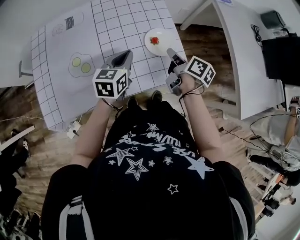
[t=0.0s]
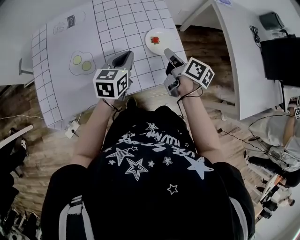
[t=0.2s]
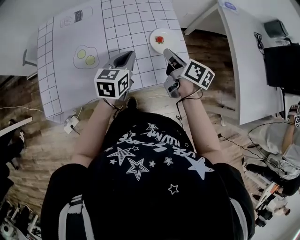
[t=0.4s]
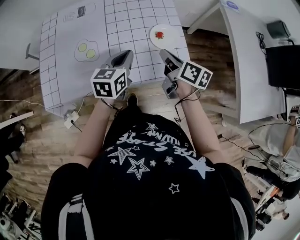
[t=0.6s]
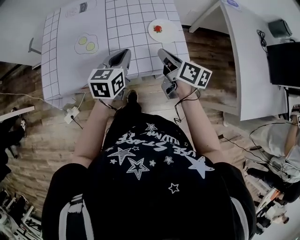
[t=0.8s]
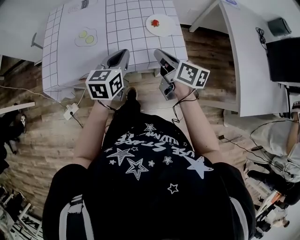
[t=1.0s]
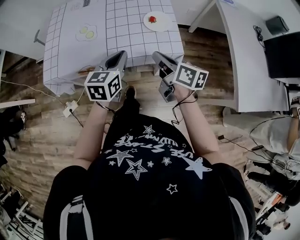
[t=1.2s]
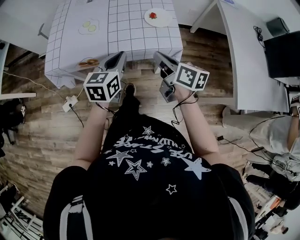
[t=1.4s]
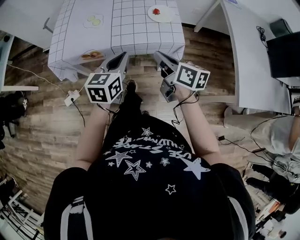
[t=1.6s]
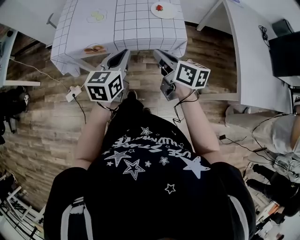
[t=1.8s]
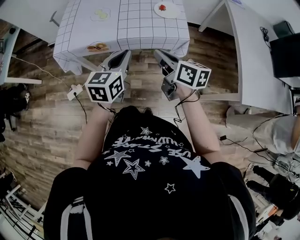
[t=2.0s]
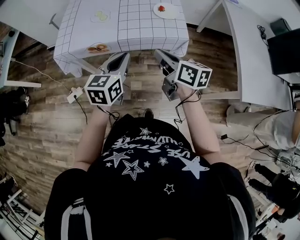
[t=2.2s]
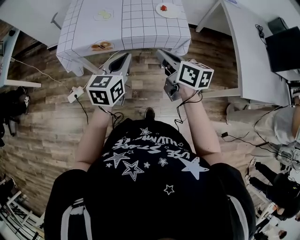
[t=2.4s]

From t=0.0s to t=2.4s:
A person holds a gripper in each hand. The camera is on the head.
From t=0.0s to t=1.2s: The left gripper changes place by roughly 20 cm.
From t=1.2s to t=2.4s: The left gripper shifts by about 15 cm.

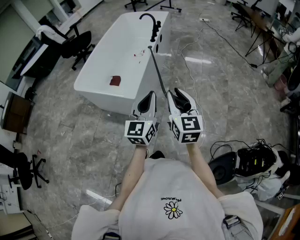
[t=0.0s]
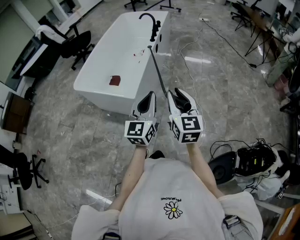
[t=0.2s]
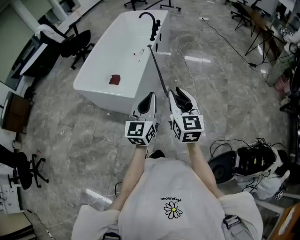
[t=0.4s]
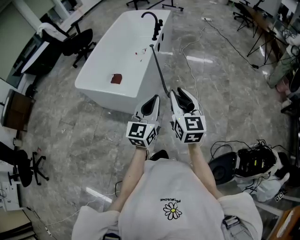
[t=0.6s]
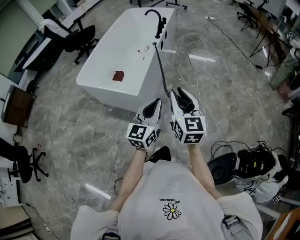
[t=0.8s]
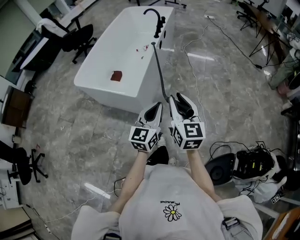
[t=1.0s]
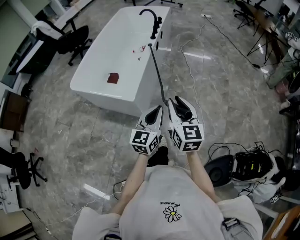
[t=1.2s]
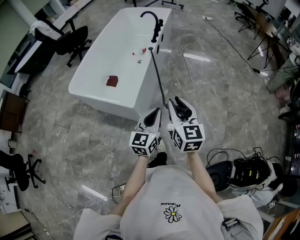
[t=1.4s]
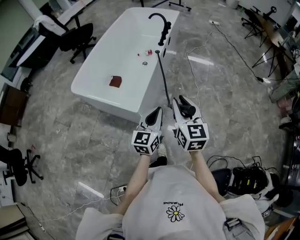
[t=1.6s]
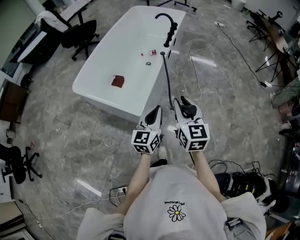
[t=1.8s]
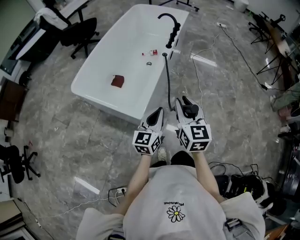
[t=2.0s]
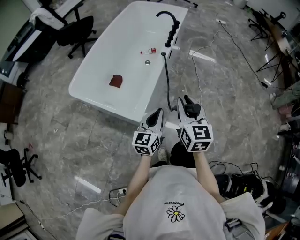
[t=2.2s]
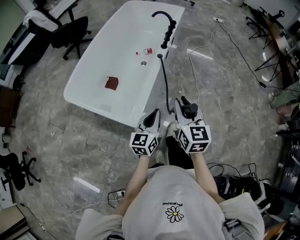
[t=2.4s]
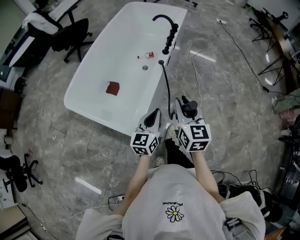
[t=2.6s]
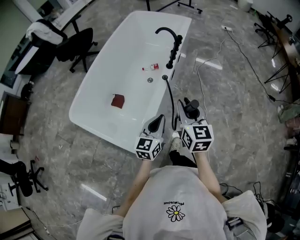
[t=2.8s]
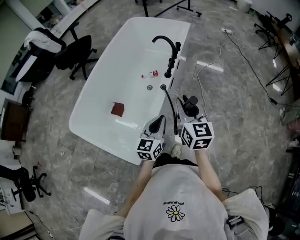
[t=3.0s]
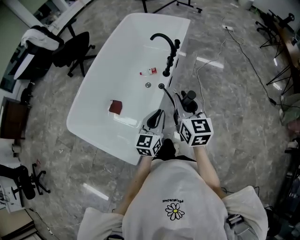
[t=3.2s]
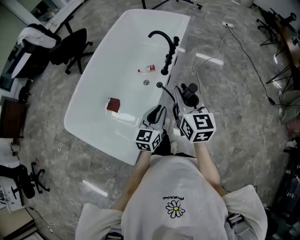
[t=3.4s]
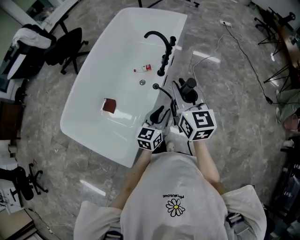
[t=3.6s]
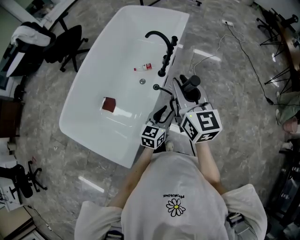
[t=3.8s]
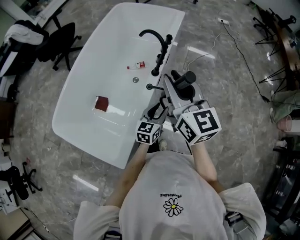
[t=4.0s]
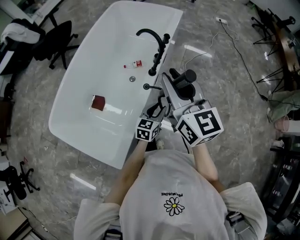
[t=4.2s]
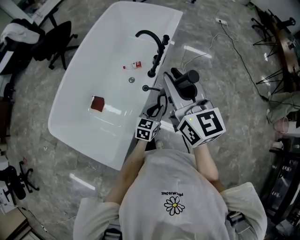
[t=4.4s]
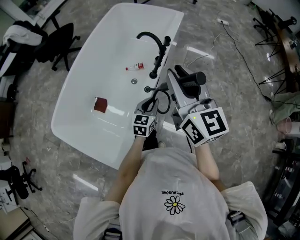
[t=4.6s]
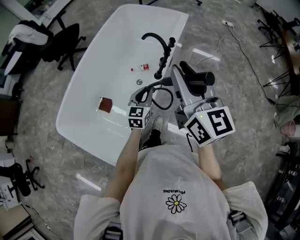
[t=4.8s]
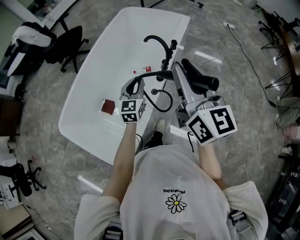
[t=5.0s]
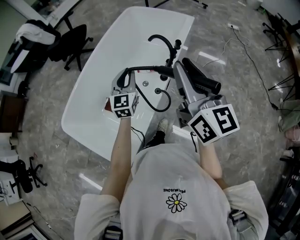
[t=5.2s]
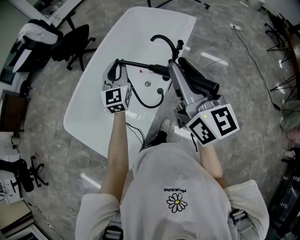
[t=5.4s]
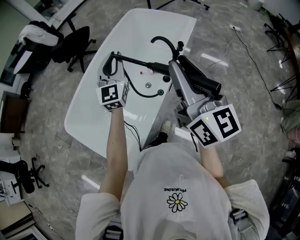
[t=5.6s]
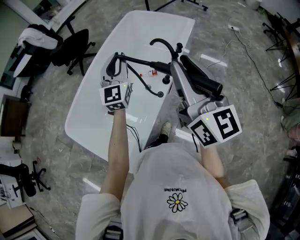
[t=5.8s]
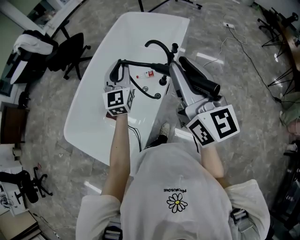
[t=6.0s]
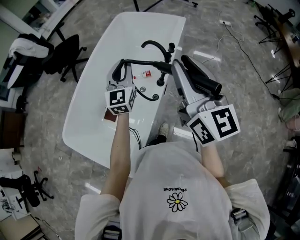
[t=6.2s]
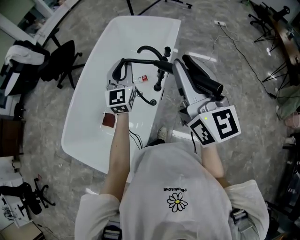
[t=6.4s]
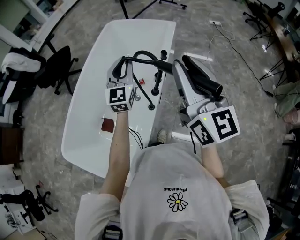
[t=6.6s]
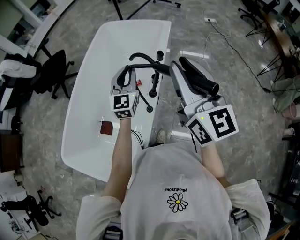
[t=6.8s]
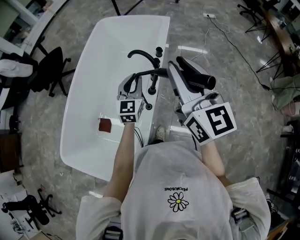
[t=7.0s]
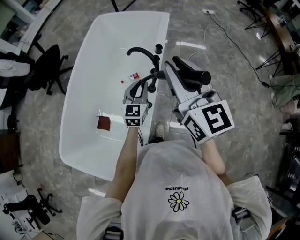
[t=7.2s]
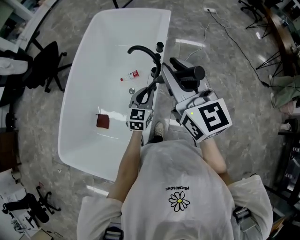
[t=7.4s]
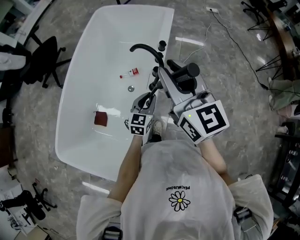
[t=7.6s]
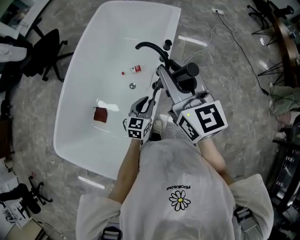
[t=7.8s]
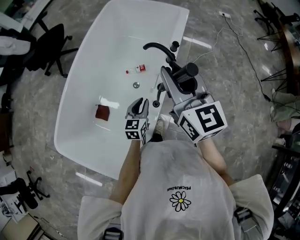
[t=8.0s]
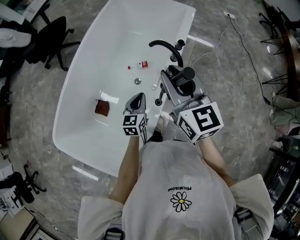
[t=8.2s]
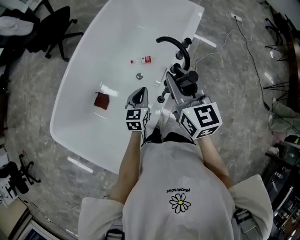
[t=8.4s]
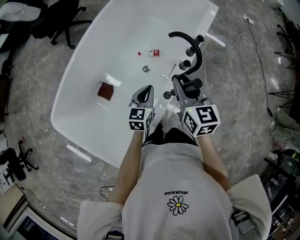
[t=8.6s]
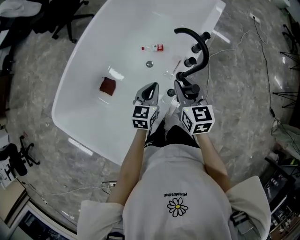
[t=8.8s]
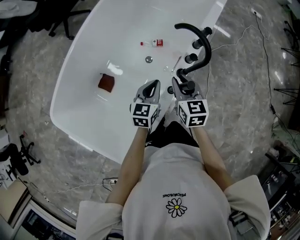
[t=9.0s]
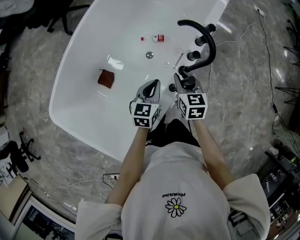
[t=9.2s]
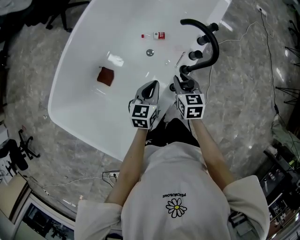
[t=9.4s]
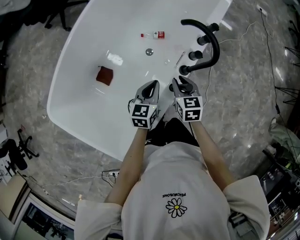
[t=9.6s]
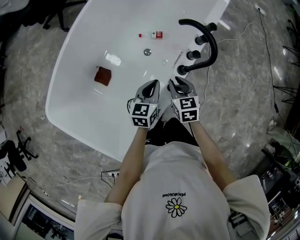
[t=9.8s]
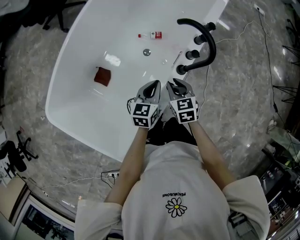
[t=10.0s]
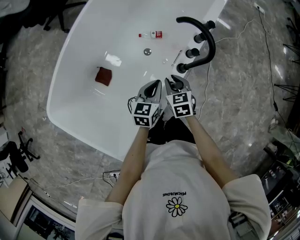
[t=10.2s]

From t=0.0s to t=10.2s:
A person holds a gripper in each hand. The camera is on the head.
From t=0.0s to t=1.4s: The right gripper travels forward by some 10 cm. Meanwhile the left gripper is displaced downward and forward by some 10 cm.
From t=1.4s to t=3.0s: Both grippers are carried forward, roughly 40 cm.
From t=3.0s to t=4.4s: The right gripper is displaced forward and upward by roughly 20 cm, while the left gripper goes approximately 20 cm forward, downward and to the right, and opens, then closes once more.
From t=4.4s to t=5.8s: The right gripper is displaced upward by about 10 cm, while the left gripper heads upward, to the left and forward, covering about 40 cm, and tilts its fingers roughly 30 degrees upward.
From t=5.8s to t=7.2s: The right gripper travels forward and downward by approximately 15 cm. Meanwhile the left gripper travels downward and to the right by roughly 25 cm, and changes its angle by roughly 30 degrees.
From t=7.2s to t=8.8s: The left gripper moves to the left and downward, about 15 cm, and turns by roughly 30 degrees; the right gripper travels downward and to the left by roughly 30 cm, and angles its fingers downward, by approximately 30 degrees.
From t=8.8s to t=10.2s: The right gripper travels downward by approximately 15 cm, and rotates approximately 20 degrees, while the left gripper shifts about 5 cm downward.

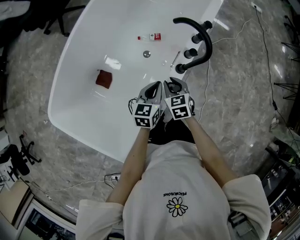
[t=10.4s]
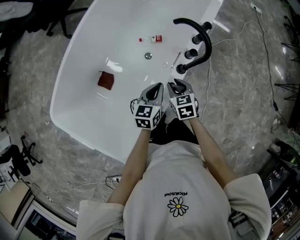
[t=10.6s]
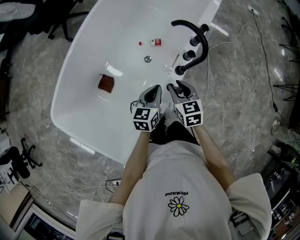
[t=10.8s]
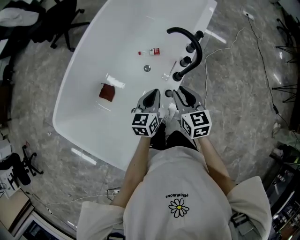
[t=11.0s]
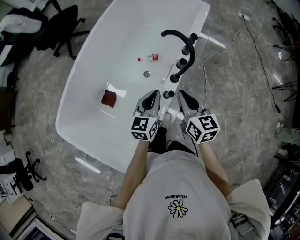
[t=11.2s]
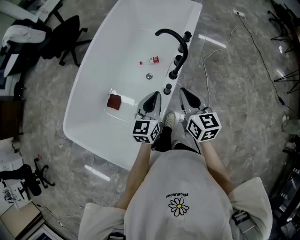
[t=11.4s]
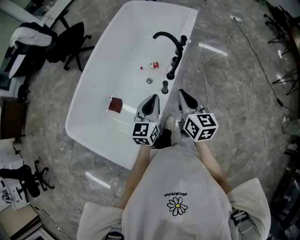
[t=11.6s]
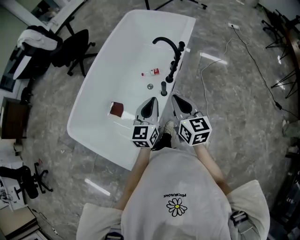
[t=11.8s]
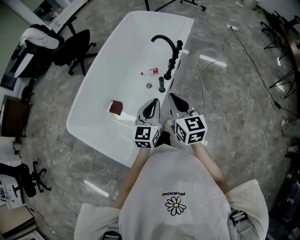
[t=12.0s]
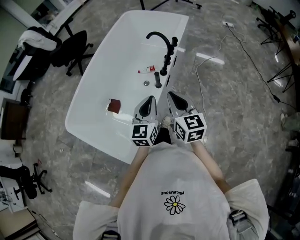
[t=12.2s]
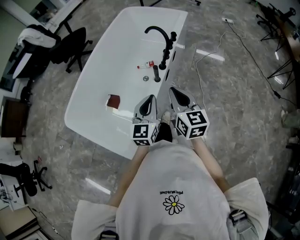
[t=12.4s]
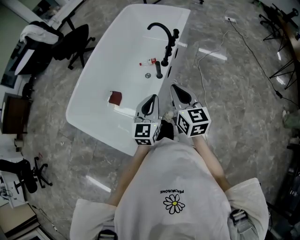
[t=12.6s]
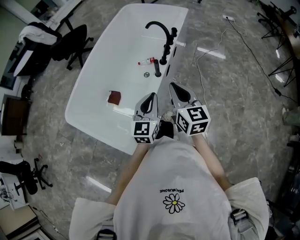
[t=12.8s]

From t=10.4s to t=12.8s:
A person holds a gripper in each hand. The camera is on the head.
From t=10.4s to t=11.6s: The grippers both shift upward and backward by roughly 25 cm. The right gripper angles its fingers upward, by roughly 30 degrees, and closes its fingers; the left gripper changes its angle by approximately 20 degrees.
From t=11.6s to t=12.8s: Both grippers move backward, roughly 15 cm.

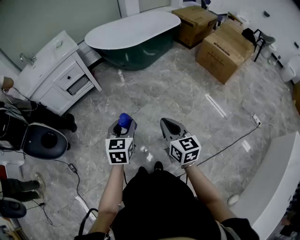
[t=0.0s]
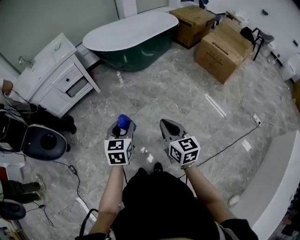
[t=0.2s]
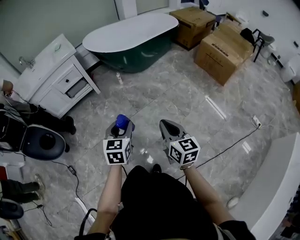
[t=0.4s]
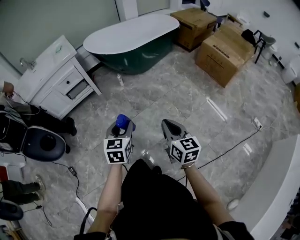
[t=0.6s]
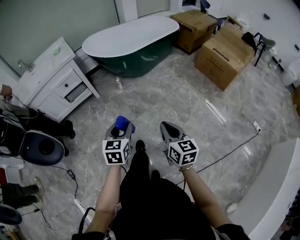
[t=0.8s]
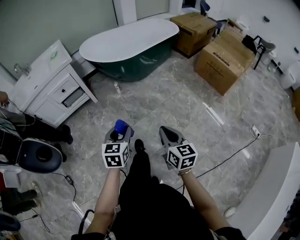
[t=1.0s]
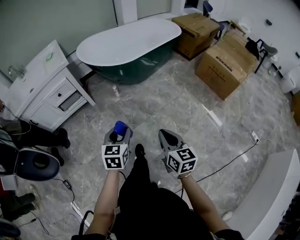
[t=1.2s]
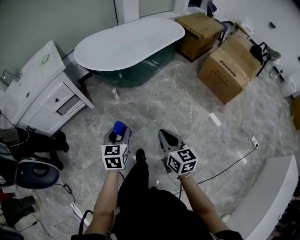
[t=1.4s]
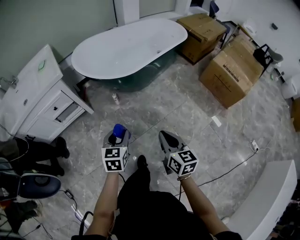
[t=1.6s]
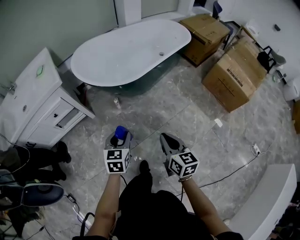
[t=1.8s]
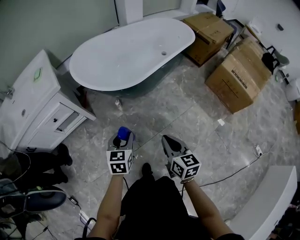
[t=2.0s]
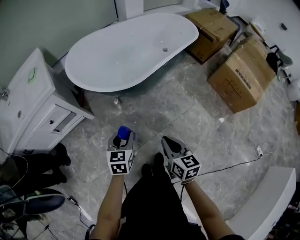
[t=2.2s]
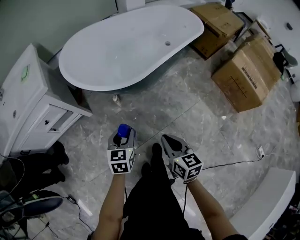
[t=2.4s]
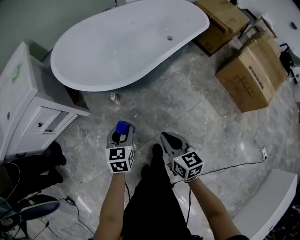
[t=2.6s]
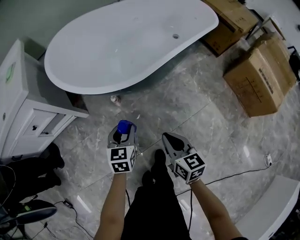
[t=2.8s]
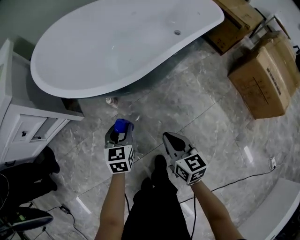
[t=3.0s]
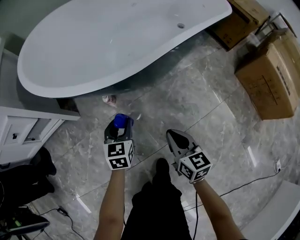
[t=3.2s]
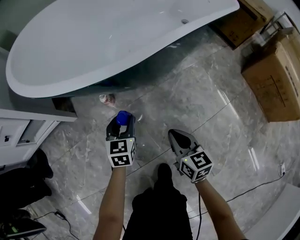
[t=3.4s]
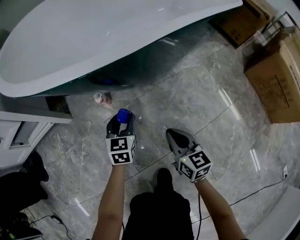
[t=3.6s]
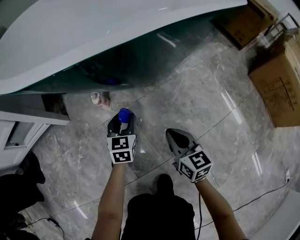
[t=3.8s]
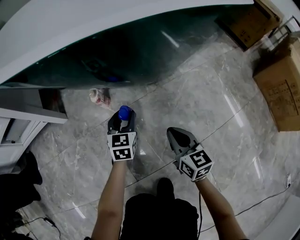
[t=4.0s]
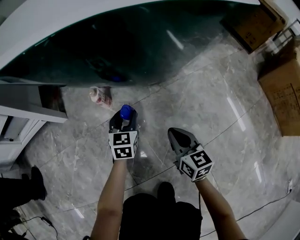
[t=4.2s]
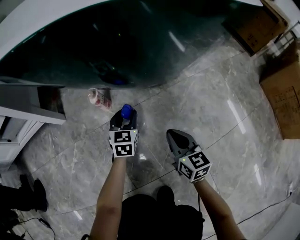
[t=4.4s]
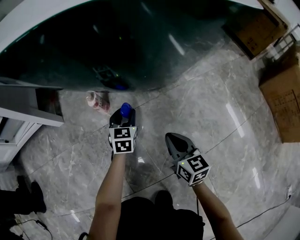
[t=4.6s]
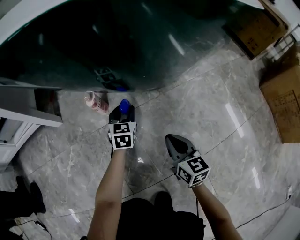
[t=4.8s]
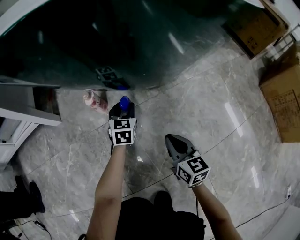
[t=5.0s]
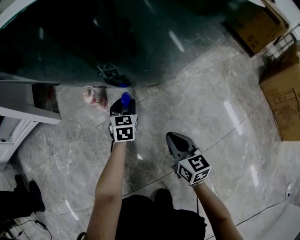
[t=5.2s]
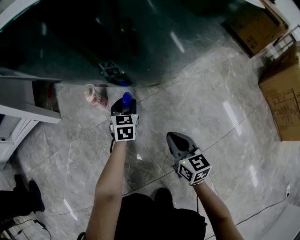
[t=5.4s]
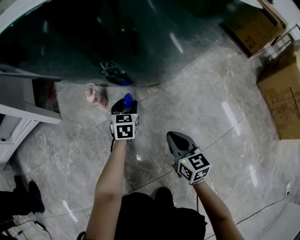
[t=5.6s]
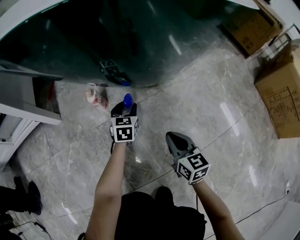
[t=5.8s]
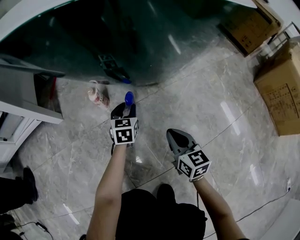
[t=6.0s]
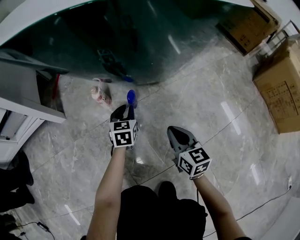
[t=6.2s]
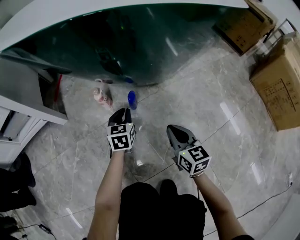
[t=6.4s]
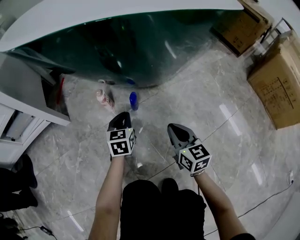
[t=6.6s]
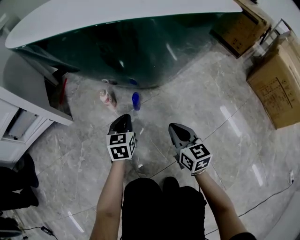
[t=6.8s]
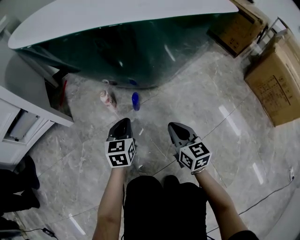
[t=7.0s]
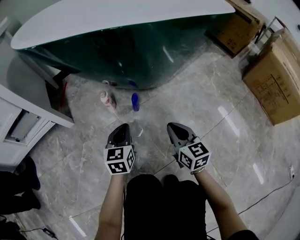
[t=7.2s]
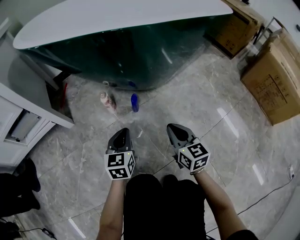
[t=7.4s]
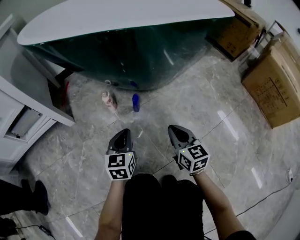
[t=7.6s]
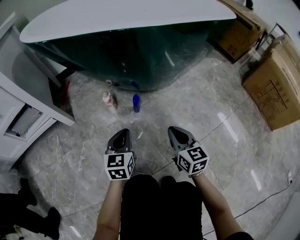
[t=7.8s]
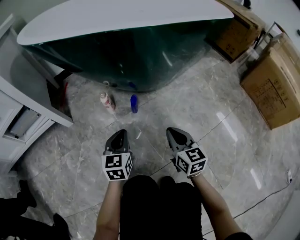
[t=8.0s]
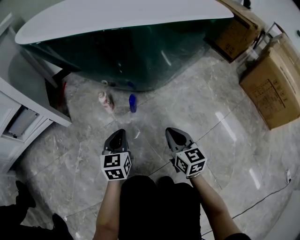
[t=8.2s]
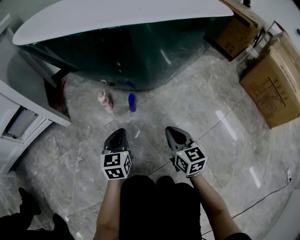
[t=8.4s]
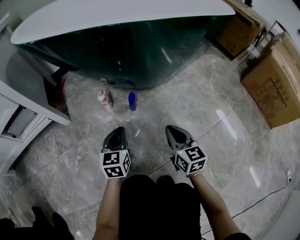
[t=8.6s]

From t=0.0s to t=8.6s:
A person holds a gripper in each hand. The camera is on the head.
From t=0.0s to t=1.4s: The two grippers go roughly 25 cm forward.
From t=1.4s to t=2.8s: Both grippers move forward and downward, some 40 cm.
From t=2.8s to t=4.4s: The left gripper moves downward and forward, some 40 cm; the right gripper heads downward, covering roughly 40 cm.
From t=4.4s to t=5.8s: The left gripper shifts by about 5 cm.
From t=5.8s to t=7.2s: The left gripper travels backward, upward and to the left by about 20 cm, and closes up. Meanwhile the right gripper moves upward, roughly 10 cm.
From t=7.2s to t=8.6s: The grippers move only a little.
